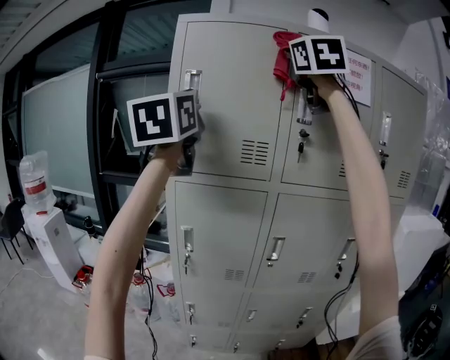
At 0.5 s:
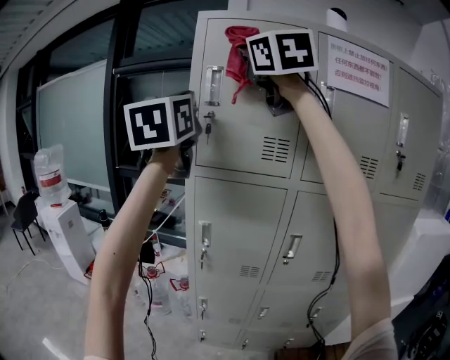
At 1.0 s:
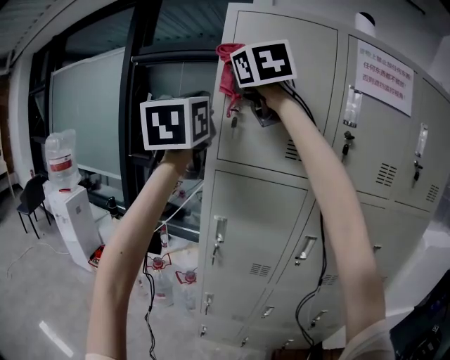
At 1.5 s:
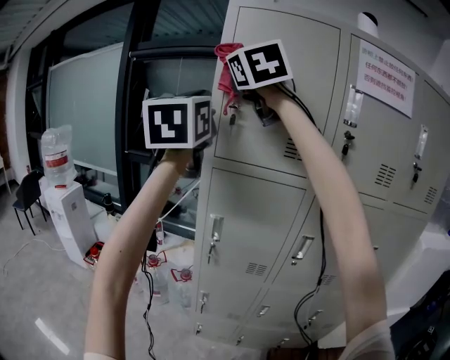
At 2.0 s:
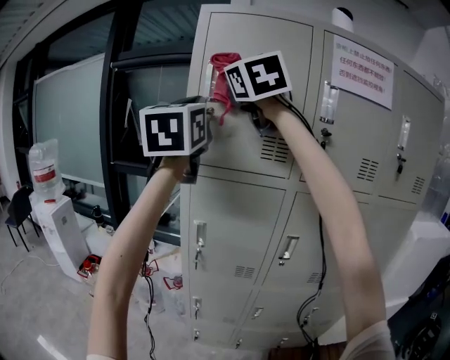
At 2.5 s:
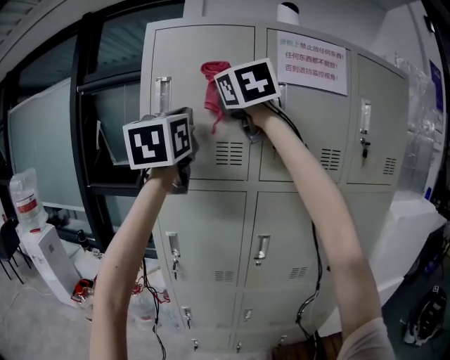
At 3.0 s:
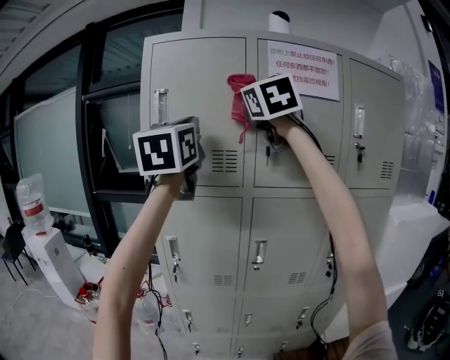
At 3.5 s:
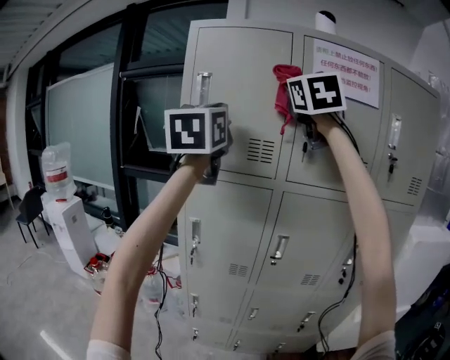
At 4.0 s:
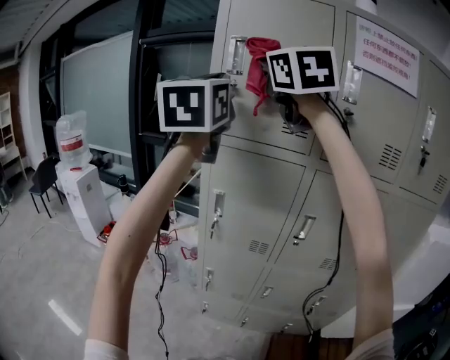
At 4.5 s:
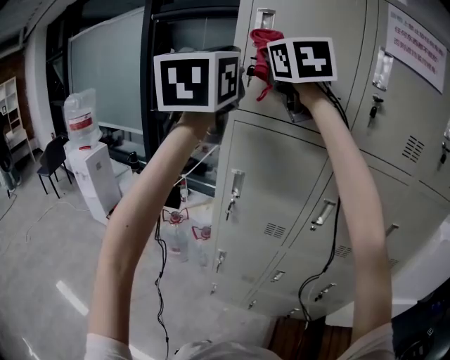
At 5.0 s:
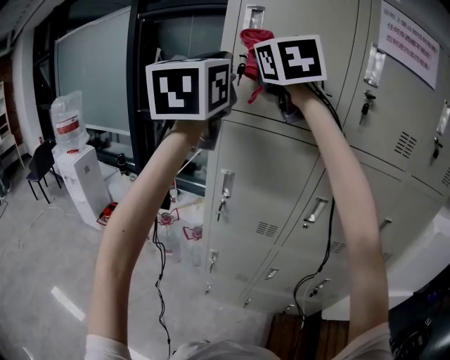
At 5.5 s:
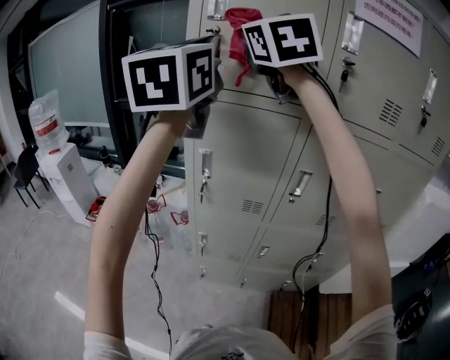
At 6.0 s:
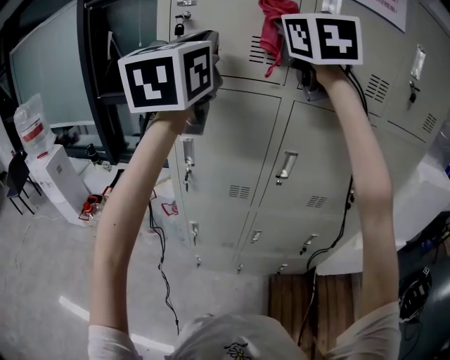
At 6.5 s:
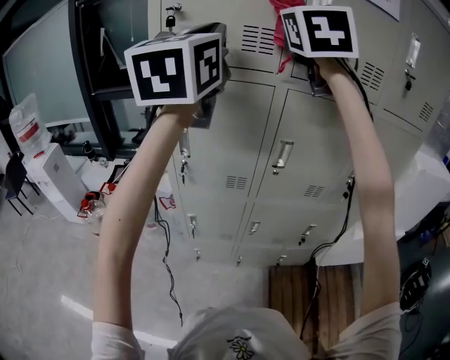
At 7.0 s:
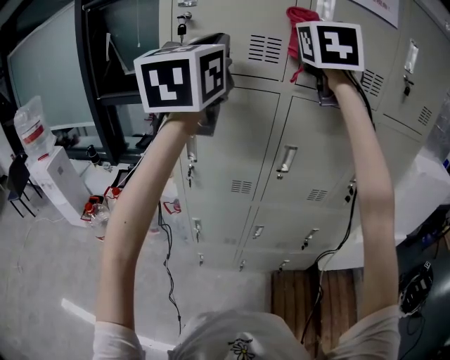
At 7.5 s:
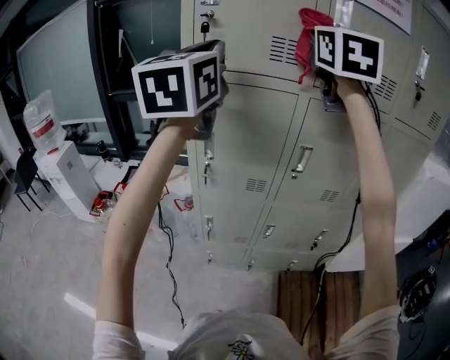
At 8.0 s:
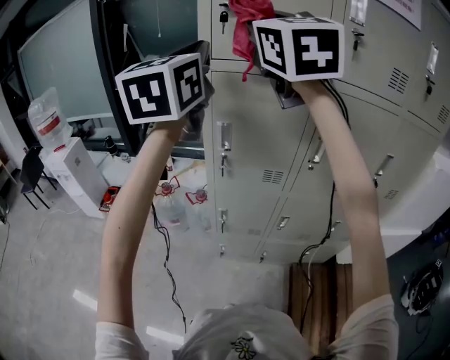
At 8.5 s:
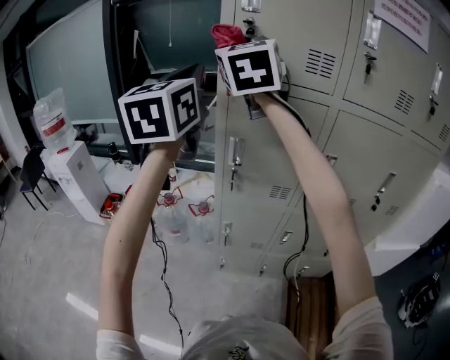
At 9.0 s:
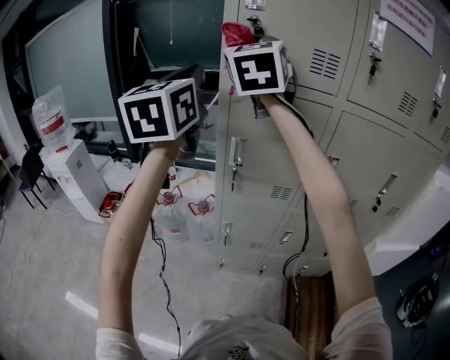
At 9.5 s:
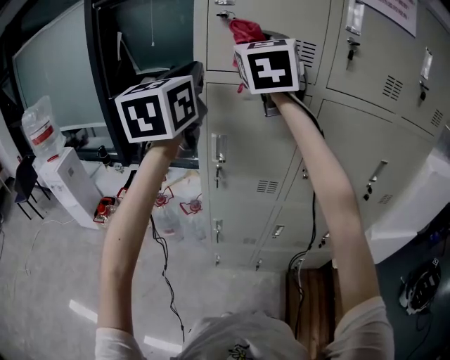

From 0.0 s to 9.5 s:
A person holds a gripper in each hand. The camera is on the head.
From 0.0 s to 2.0 s: The right gripper is displaced to the left and downward by roughly 20 cm.
From 2.0 s to 4.0 s: The right gripper reaches roughly 20 cm to the right, then returns. The left gripper reaches roughly 10 cm to the right, then returns.
From 4.0 s to 5.5 s: The right gripper moves downward, approximately 5 cm.
From 5.5 s to 7.5 s: The left gripper moves roughly 10 cm to the right and comes back. The right gripper goes roughly 15 cm to the right, and rotates approximately 20 degrees.
From 7.5 s to 9.5 s: The left gripper moves to the left, roughly 5 cm. Meanwhile the right gripper is displaced to the left by about 15 cm.

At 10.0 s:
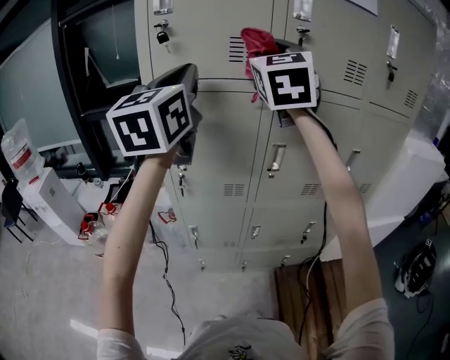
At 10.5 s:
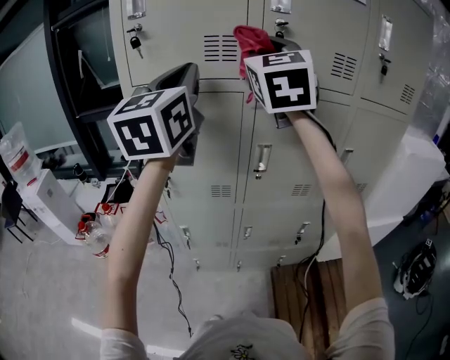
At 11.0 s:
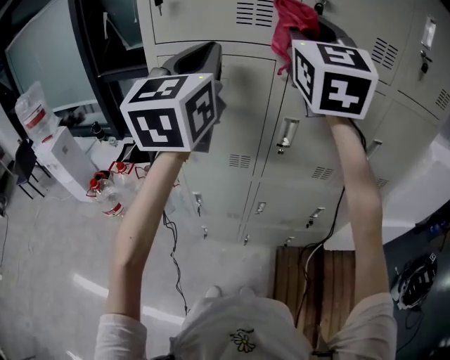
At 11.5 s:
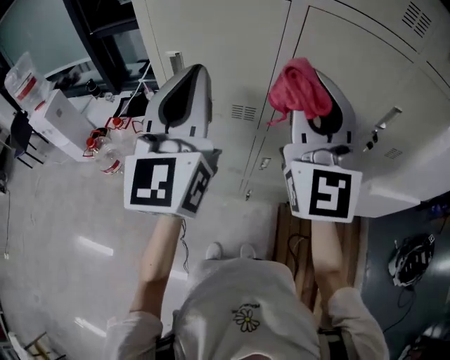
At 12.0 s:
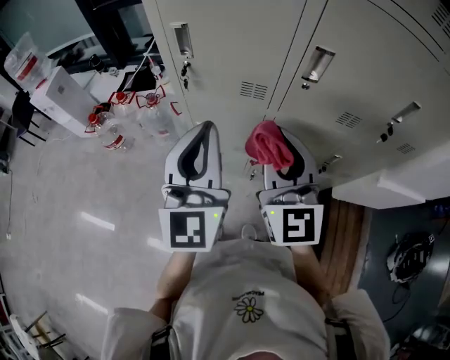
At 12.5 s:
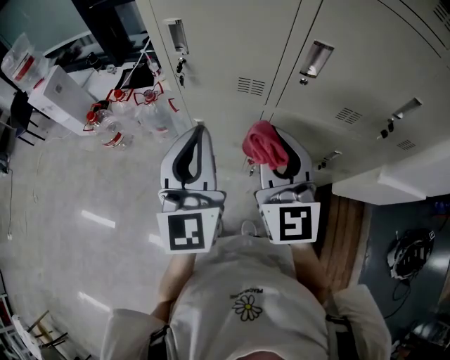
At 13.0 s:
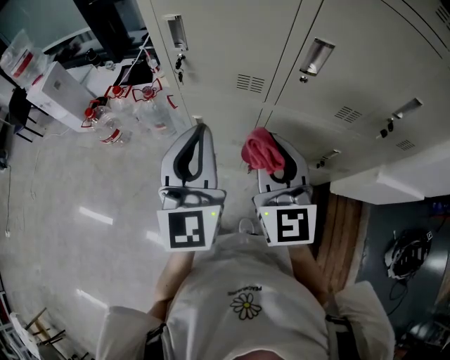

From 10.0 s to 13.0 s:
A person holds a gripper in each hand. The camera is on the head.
From 10.0 s to 11.5 s: The two grippers go roughly 20 cm downward and backward. The right gripper changes its angle by about 20 degrees.
From 11.5 s to 13.0 s: Both grippers move downward, roughly 15 cm. The right gripper rotates about 30 degrees.

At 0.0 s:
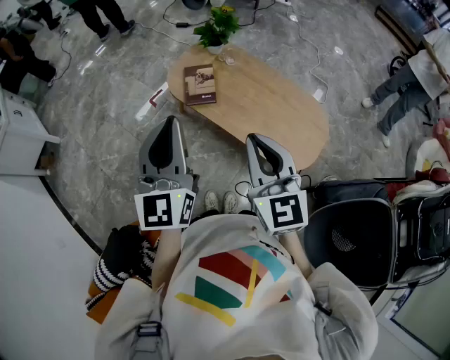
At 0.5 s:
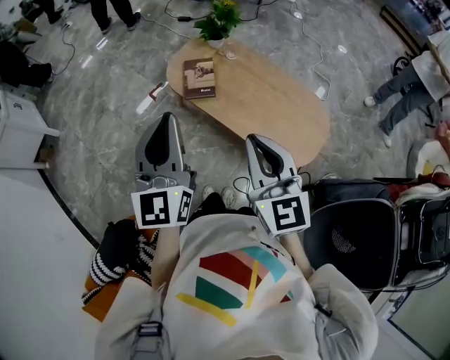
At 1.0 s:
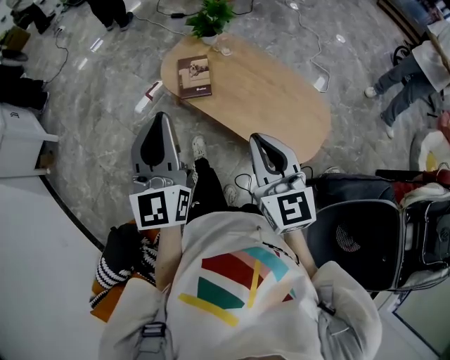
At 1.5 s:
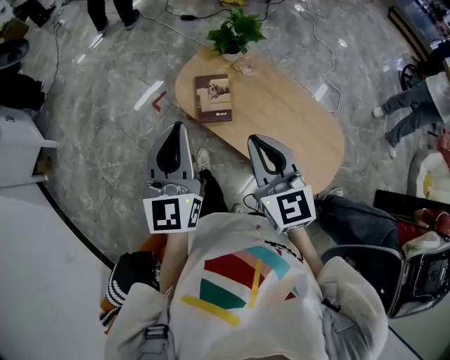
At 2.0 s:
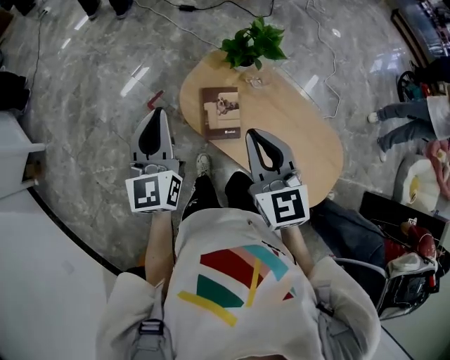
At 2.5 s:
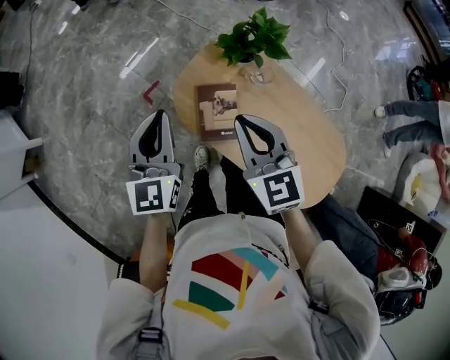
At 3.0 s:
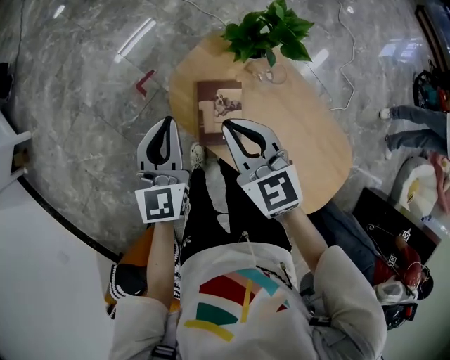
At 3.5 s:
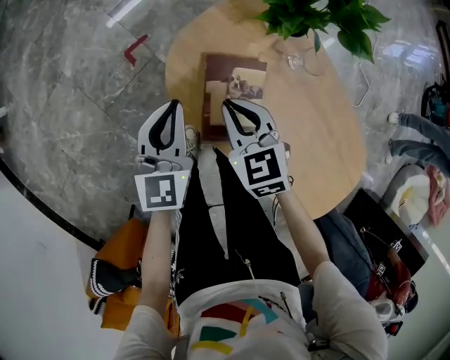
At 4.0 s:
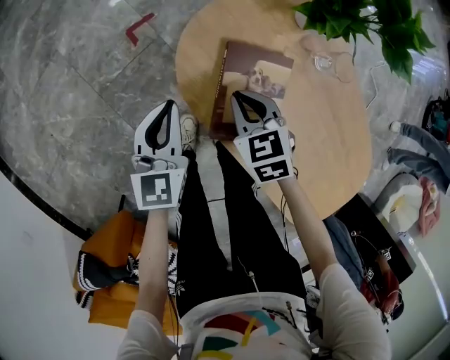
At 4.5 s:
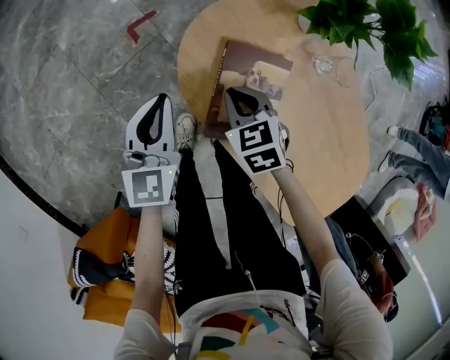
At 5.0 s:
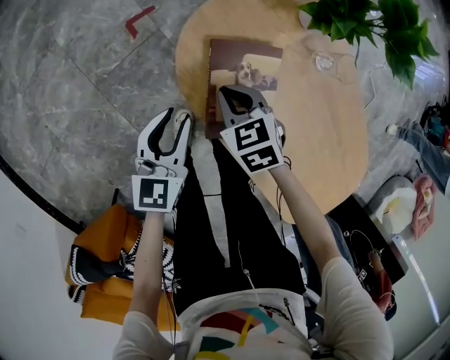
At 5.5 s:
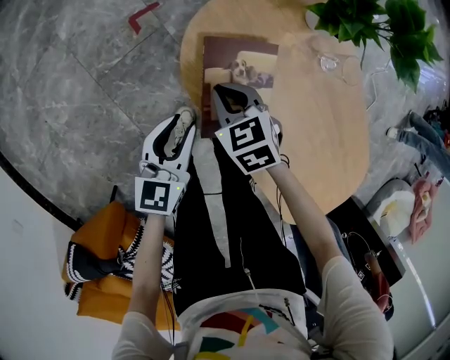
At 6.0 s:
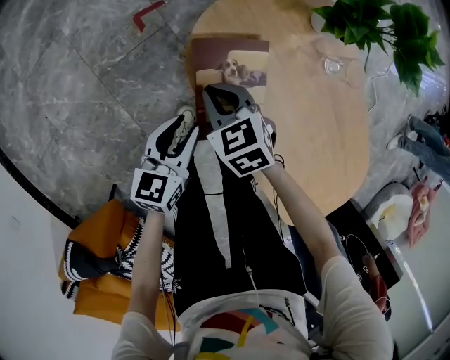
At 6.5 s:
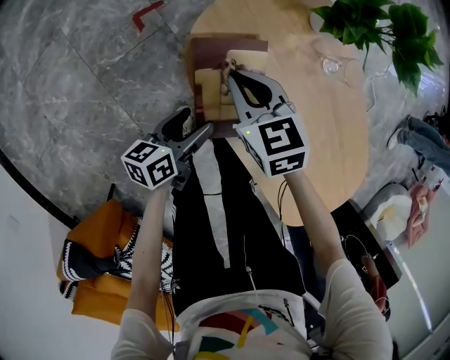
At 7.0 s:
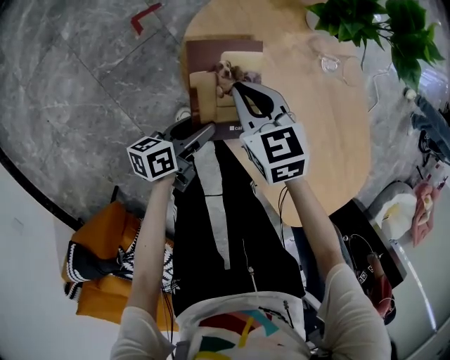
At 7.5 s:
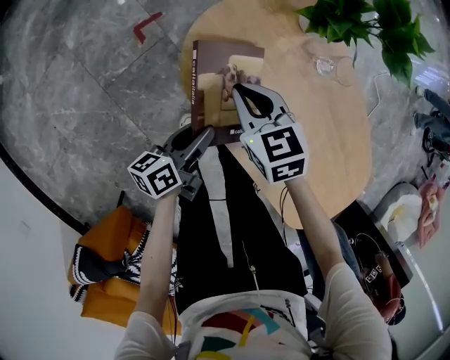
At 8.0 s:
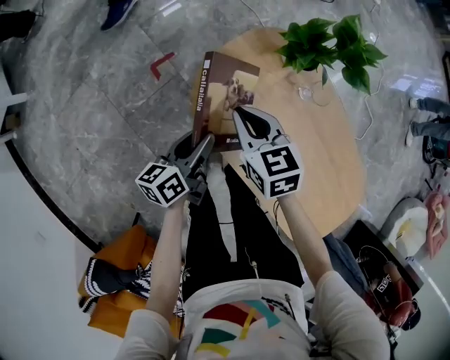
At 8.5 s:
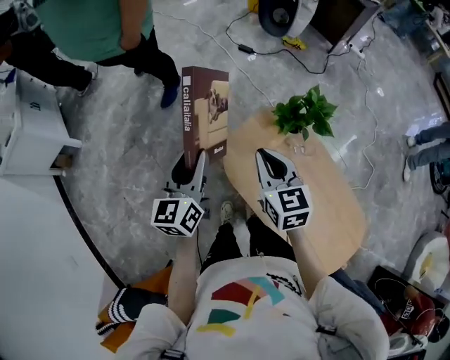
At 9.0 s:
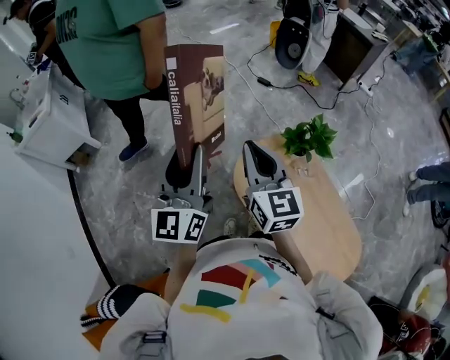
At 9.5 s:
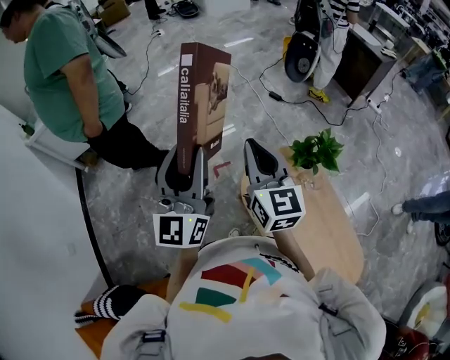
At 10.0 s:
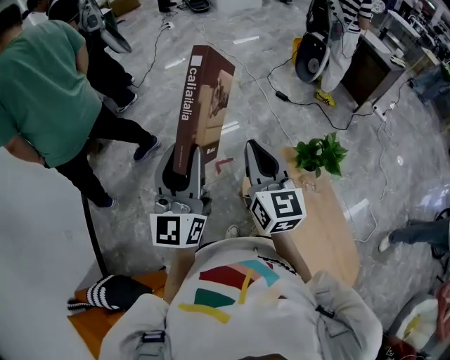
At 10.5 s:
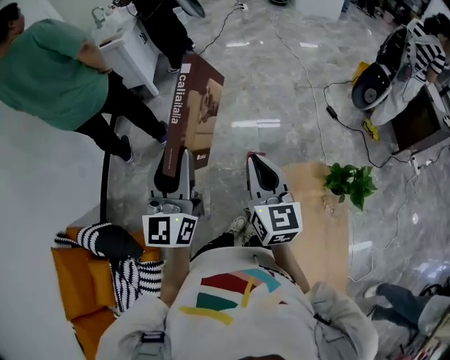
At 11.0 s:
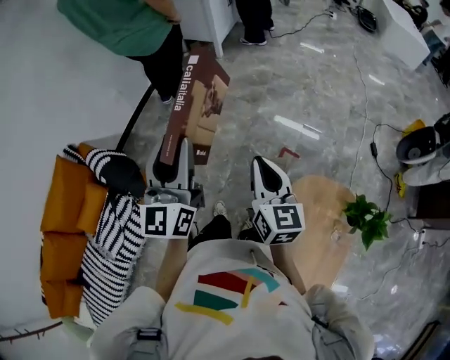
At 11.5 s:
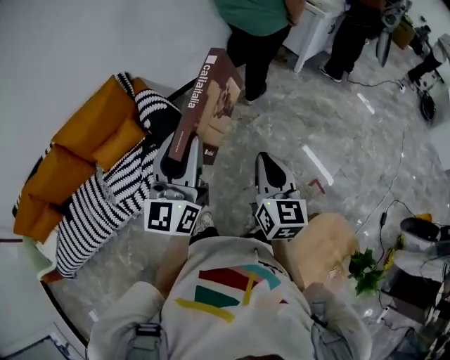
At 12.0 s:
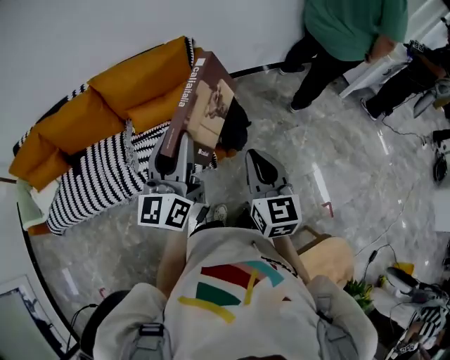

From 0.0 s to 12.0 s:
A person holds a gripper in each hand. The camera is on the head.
From 0.0 s to 2.0 s: The grippers both shift forward by about 35 cm.
From 2.0 s to 4.0 s: Both grippers travel together downward, some 40 cm. The left gripper swivels roughly 20 degrees. Meanwhile the right gripper tips its fingers downward by approximately 40 degrees.
From 4.0 s to 6.0 s: The right gripper is displaced to the left by some 10 cm; the left gripper heads backward, covering about 10 cm, turns by roughly 20 degrees, and opens its fingers.
From 6.0 s to 8.0 s: The right gripper heads upward, covering about 15 cm, and changes its angle by roughly 20 degrees, while the left gripper moves upward and forward, roughly 10 cm, changes its angle by about 30 degrees, and opens and closes again.
From 8.0 s to 10.0 s: The two grippers go roughly 50 cm upward. The right gripper tilts its fingers about 40 degrees upward; the left gripper points its fingers about 40 degrees further upward.
From 10.0 s to 12.0 s: The pair of grippers is taken roughly 80 cm. The left gripper changes its angle by approximately 90 degrees. Meanwhile the right gripper swivels approximately 90 degrees.

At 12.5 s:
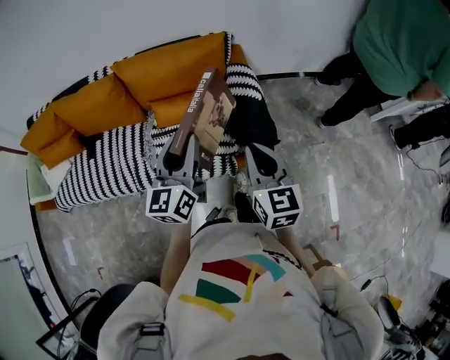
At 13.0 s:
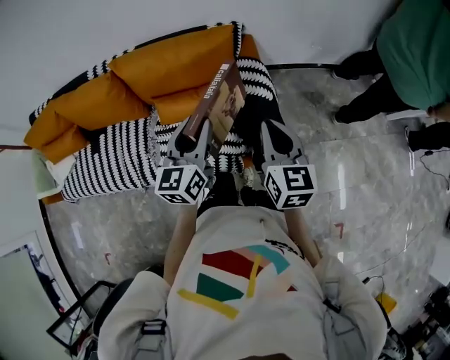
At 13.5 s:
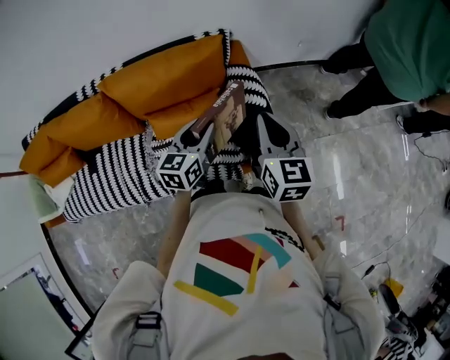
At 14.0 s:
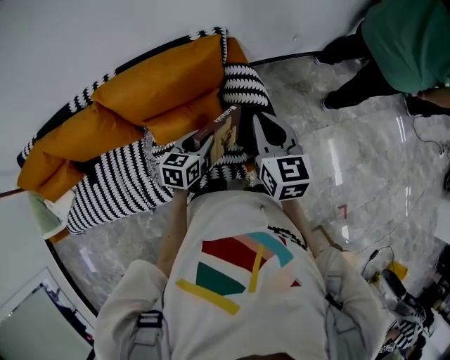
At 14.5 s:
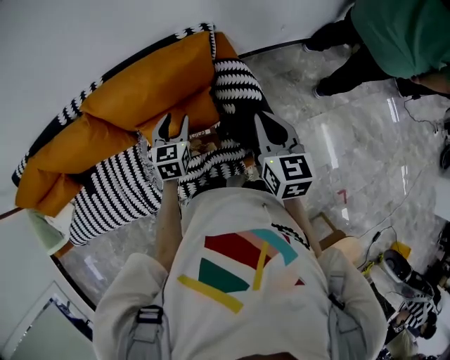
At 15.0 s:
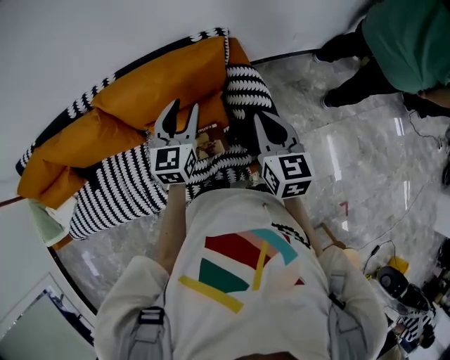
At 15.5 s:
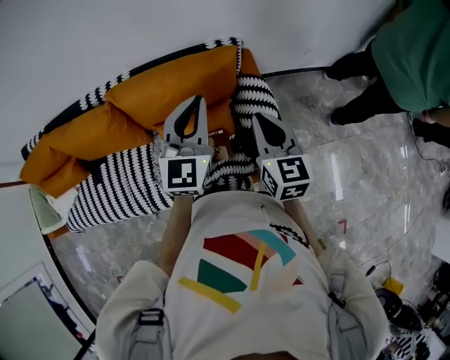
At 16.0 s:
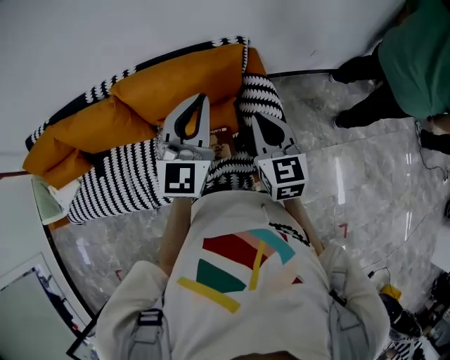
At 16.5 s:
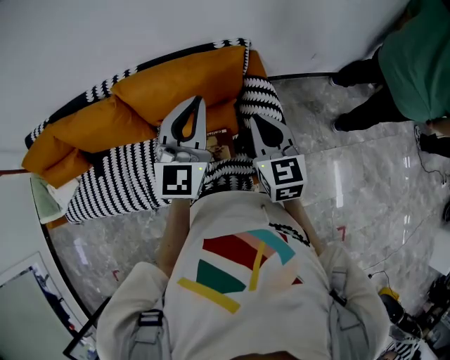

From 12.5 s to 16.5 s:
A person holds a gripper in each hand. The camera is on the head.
From 12.5 s to 14.5 s: The left gripper heads forward and downward, covering approximately 30 cm, and points its fingers about 30 degrees further downward. Meanwhile the right gripper is displaced forward by some 20 cm.
From 14.5 s to 16.5 s: The right gripper is displaced to the left by roughly 5 cm. The left gripper travels upward by about 25 cm, tips its fingers upward by some 30 degrees, and closes its fingers.
